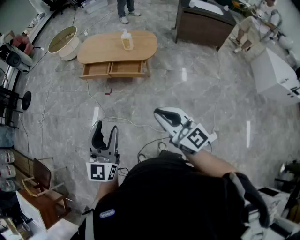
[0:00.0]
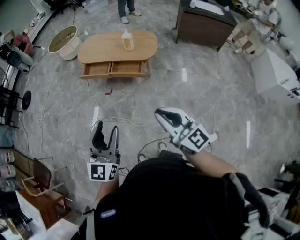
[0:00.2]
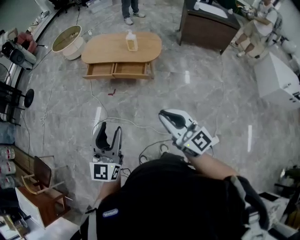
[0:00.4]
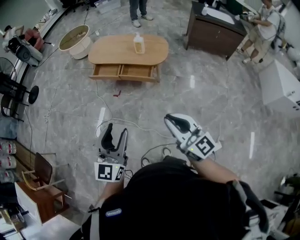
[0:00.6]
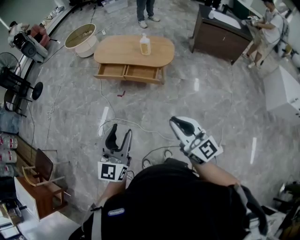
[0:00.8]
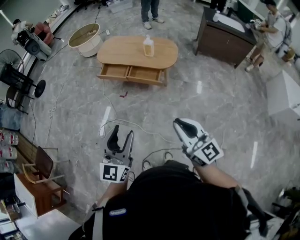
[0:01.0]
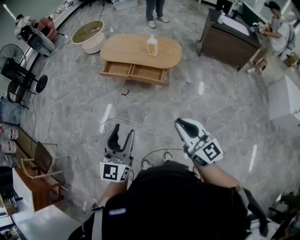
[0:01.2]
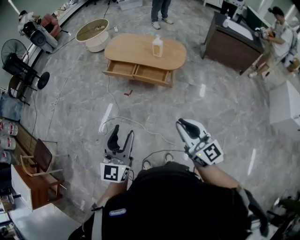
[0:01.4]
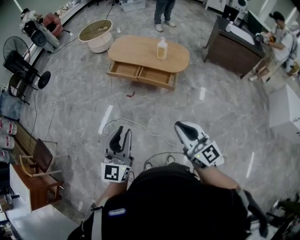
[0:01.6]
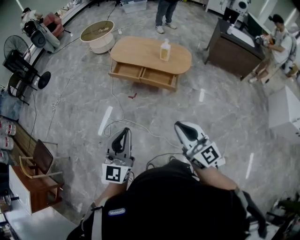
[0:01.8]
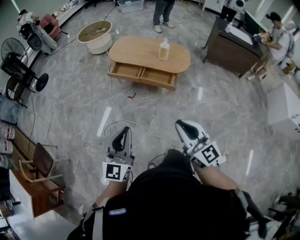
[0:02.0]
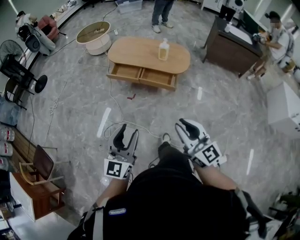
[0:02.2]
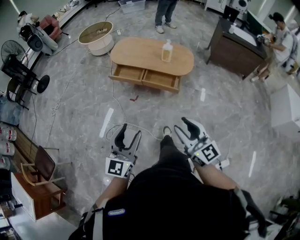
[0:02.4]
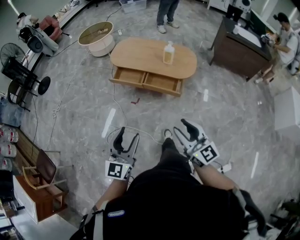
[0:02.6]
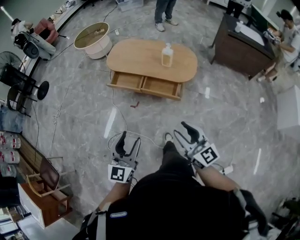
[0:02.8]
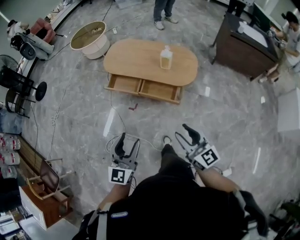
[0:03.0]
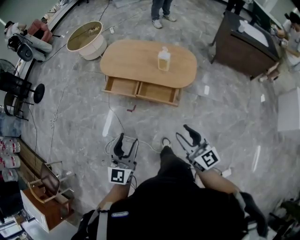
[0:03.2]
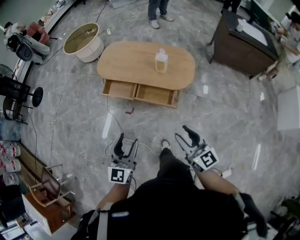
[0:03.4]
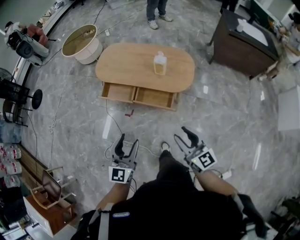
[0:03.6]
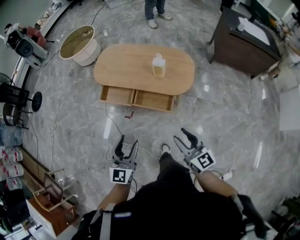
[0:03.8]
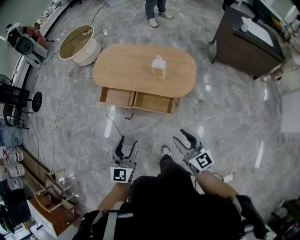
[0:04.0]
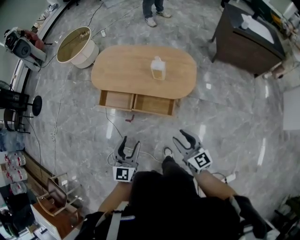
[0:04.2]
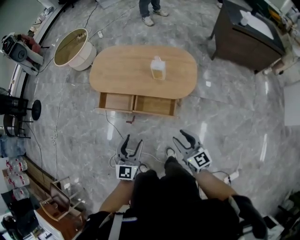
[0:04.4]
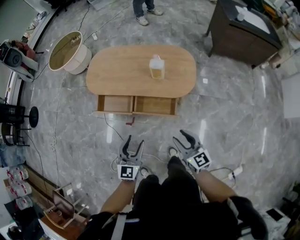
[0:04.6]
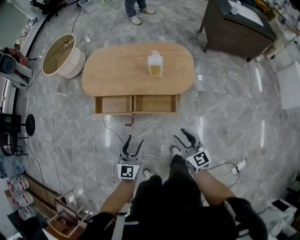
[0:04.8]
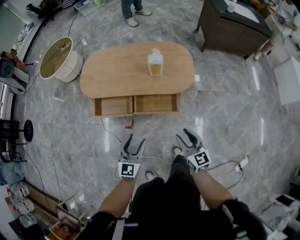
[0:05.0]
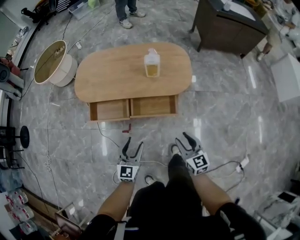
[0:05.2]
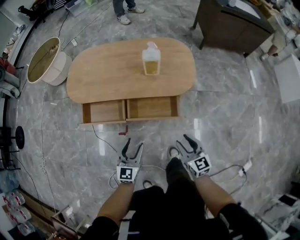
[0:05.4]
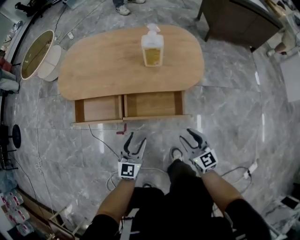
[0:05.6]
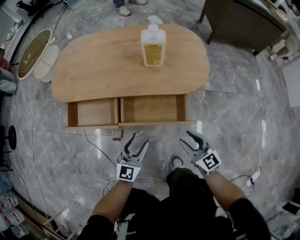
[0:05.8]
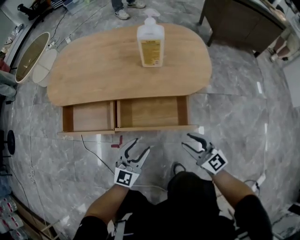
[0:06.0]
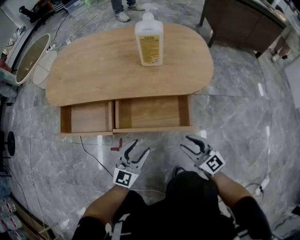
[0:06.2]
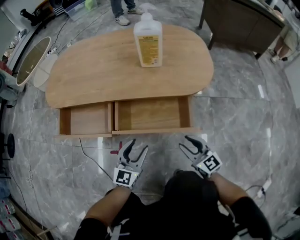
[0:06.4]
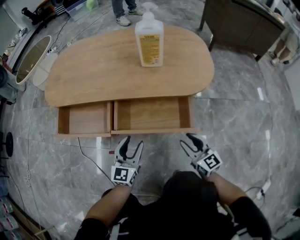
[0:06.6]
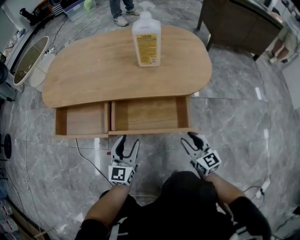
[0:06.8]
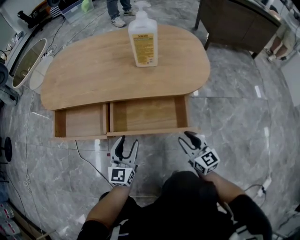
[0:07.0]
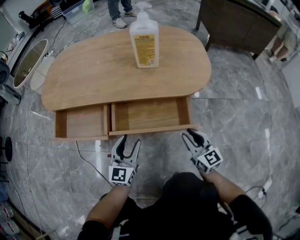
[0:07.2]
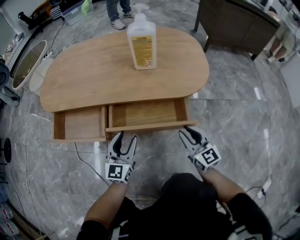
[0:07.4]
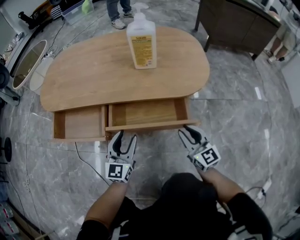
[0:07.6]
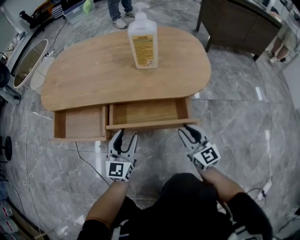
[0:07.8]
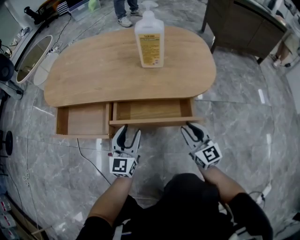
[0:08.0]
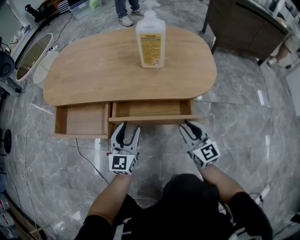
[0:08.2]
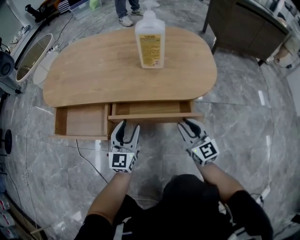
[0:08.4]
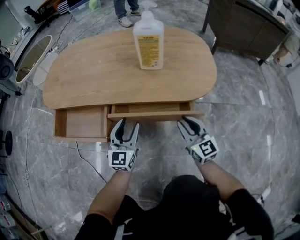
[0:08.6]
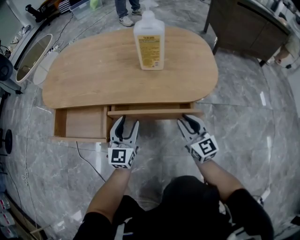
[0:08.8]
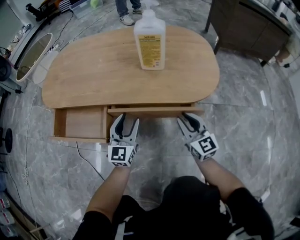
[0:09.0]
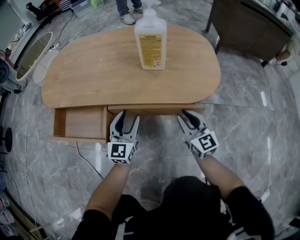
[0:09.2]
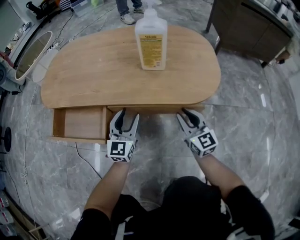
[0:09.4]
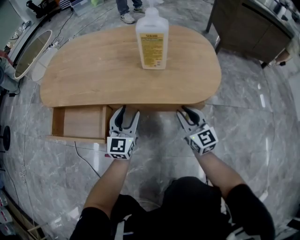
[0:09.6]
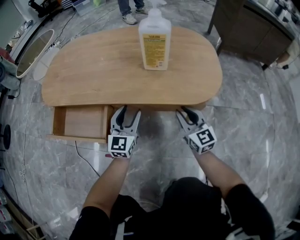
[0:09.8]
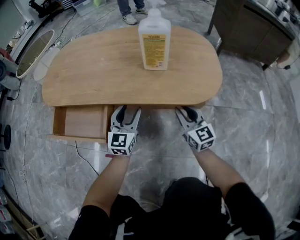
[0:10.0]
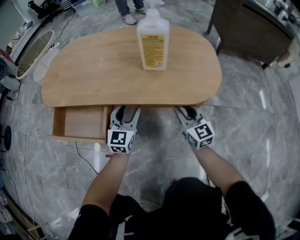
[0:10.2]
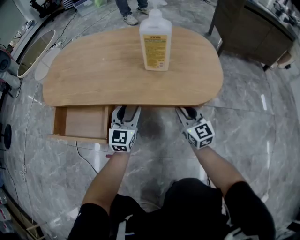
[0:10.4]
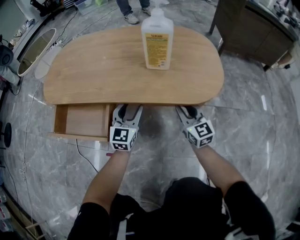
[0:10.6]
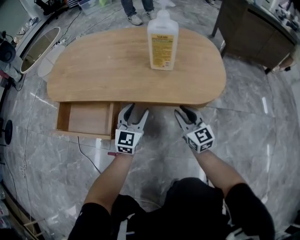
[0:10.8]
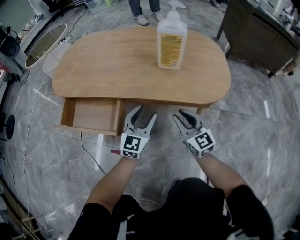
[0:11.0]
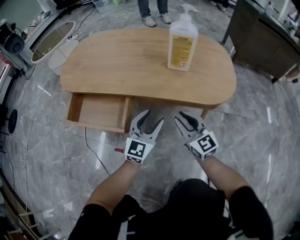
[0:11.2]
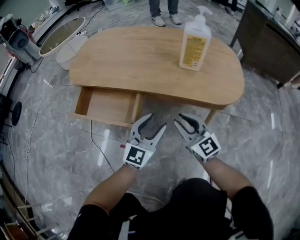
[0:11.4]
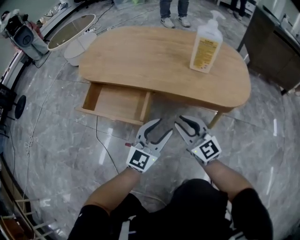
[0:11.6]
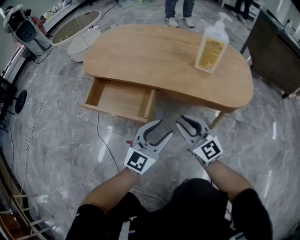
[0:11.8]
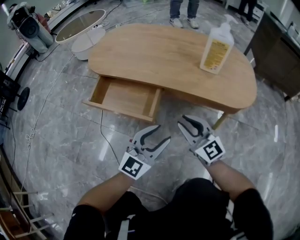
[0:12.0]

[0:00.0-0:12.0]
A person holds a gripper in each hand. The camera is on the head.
0:00.0 to 0:01.6: Both grippers travel together to the left, approximately 5 cm. The left gripper closes its fingers.
0:01.6 to 0:03.0: Both grippers move forward and downward, roughly 30 cm. The left gripper opens its fingers. Meanwhile the right gripper opens its fingers.
0:03.0 to 0:04.4: Both grippers move forward and downward, roughly 25 cm.
0:04.4 to 0:06.0: Both grippers move downward, roughly 40 cm. The left gripper rotates approximately 30 degrees.
0:06.0 to 0:07.6: The grippers both shift forward by about 10 cm. The left gripper changes its angle by some 20 degrees. Meanwhile the right gripper rotates about 20 degrees.
0:07.6 to 0:09.0: The two grippers go roughly 10 cm forward.
0:09.0 to 0:10.4: Both grippers travel together forward, roughly 5 cm.
0:10.4 to 0:12.0: The right gripper moves to the left and backward, about 25 cm, and turns by about 30 degrees. Meanwhile the left gripper is displaced backward by roughly 20 cm.

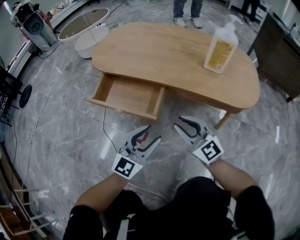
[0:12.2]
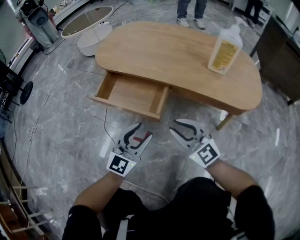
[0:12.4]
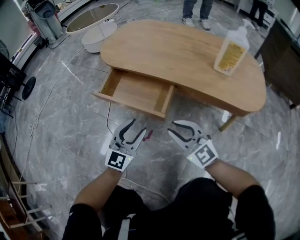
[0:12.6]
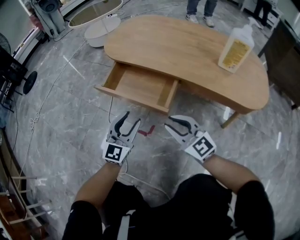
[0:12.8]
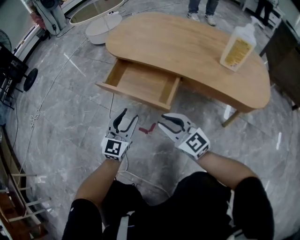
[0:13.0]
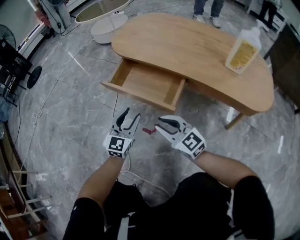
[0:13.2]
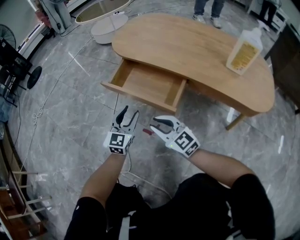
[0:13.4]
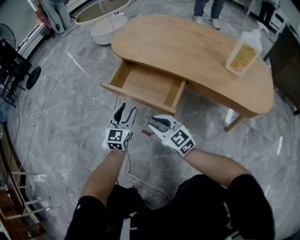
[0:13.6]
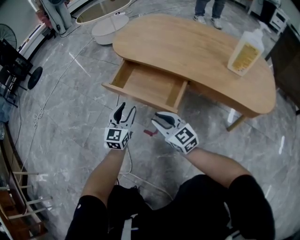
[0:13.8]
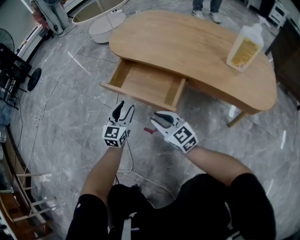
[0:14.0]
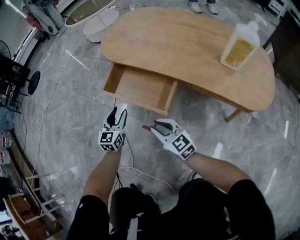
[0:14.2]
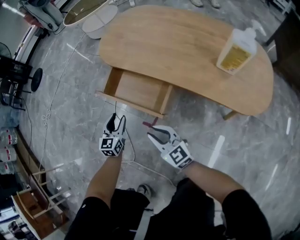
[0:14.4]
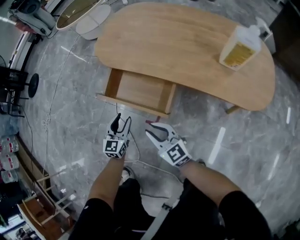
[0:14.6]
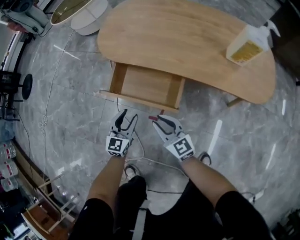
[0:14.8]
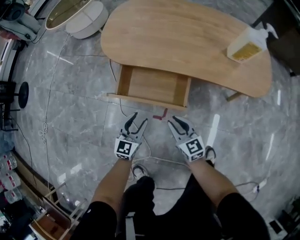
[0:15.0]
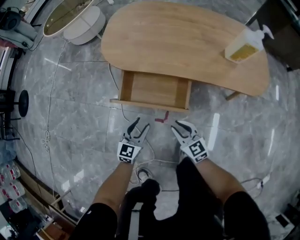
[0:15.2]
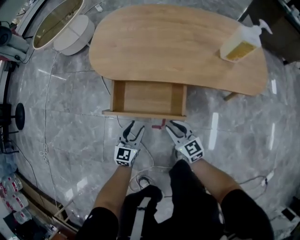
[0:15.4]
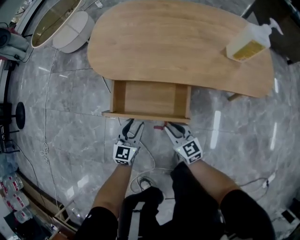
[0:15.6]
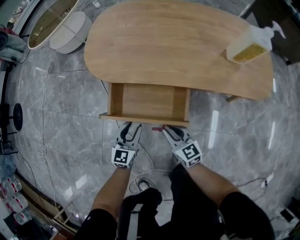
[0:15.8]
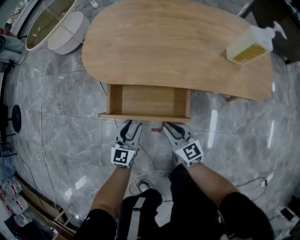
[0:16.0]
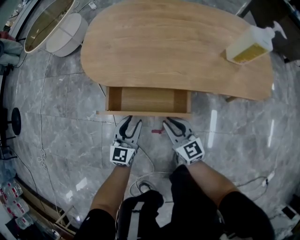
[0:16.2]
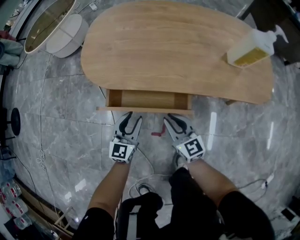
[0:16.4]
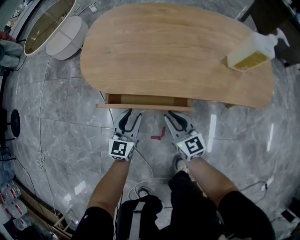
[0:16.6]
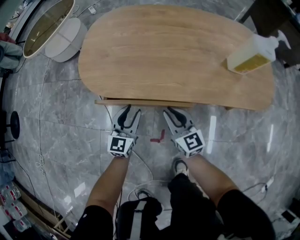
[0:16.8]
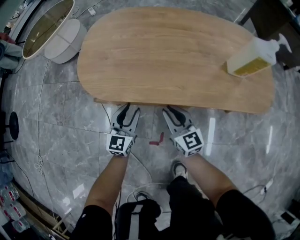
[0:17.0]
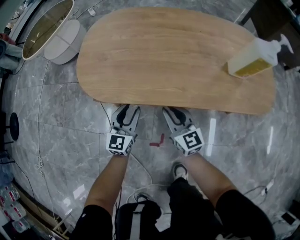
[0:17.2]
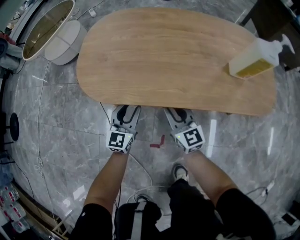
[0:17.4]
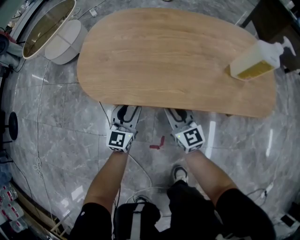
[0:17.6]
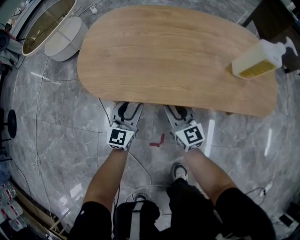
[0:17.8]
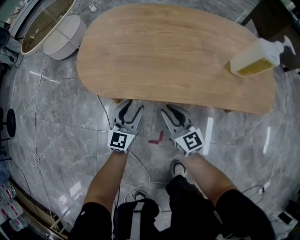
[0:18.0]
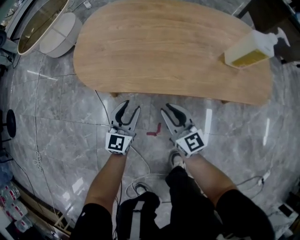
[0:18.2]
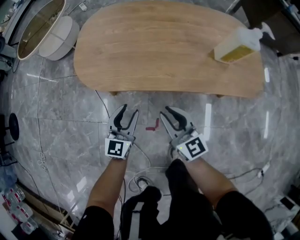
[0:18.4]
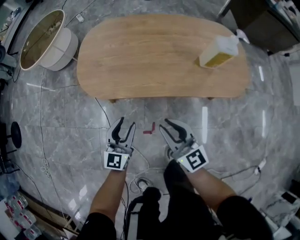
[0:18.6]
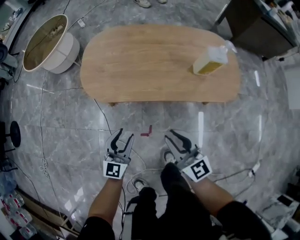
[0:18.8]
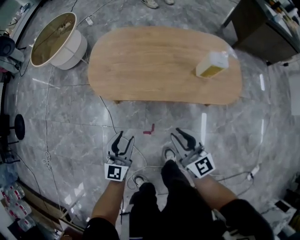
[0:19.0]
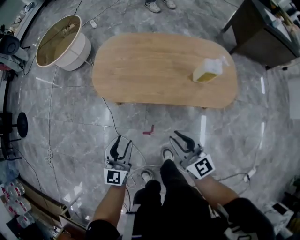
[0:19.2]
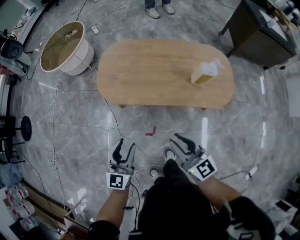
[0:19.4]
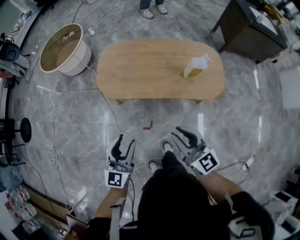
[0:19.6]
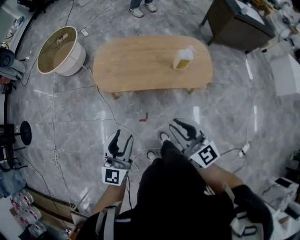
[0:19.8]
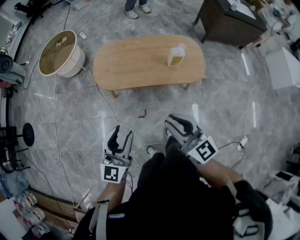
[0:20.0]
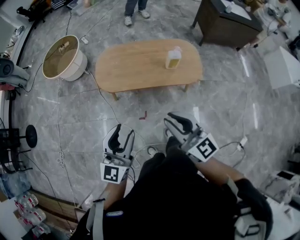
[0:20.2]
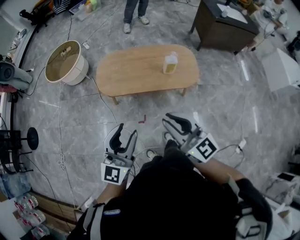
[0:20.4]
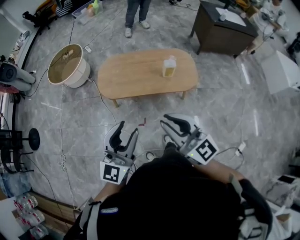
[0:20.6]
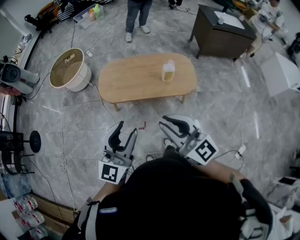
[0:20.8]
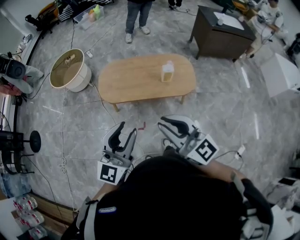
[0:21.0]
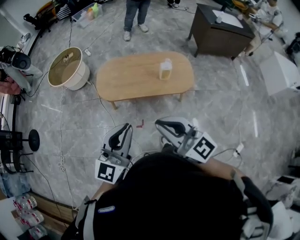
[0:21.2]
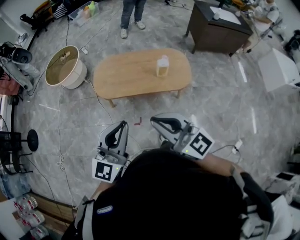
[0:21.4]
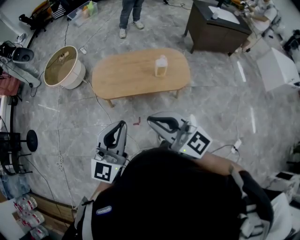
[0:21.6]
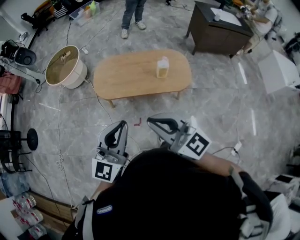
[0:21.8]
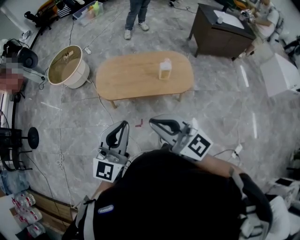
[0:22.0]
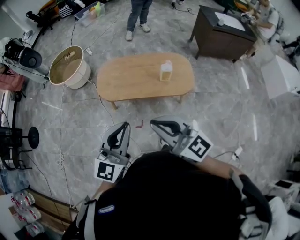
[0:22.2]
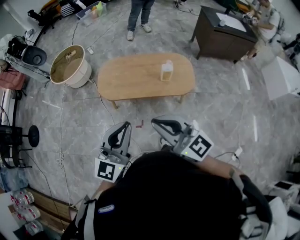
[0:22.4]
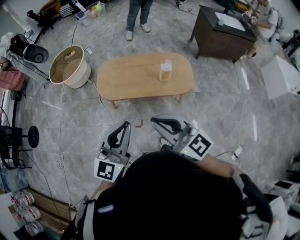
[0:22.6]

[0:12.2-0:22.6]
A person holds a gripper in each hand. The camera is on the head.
0:12.2 to 0:13.6: The right gripper moves to the left and downward, about 20 cm, and rotates about 20 degrees. The left gripper heads to the left, forward and downward, covering approximately 25 cm, and rotates roughly 40 degrees.
0:13.6 to 0:15.2: The left gripper changes place by approximately 5 cm, and rotates some 30 degrees; the right gripper changes its angle by roughly 30 degrees.
0:15.2 to 0:16.6: Both grippers travel together forward, about 15 cm.
0:16.6 to 0:18.2: The left gripper goes forward and returns, about 10 cm each way. The right gripper travels forward and back again, some 10 cm each way.
0:18.2 to 0:19.6: Both grippers move upward and backward, roughly 50 cm.
0:19.6 to 0:21.2: The left gripper moves upward, approximately 35 cm, and closes up; the right gripper travels upward and backward by about 35 cm.
0:21.2 to 0:22.6: Both grippers stay put.

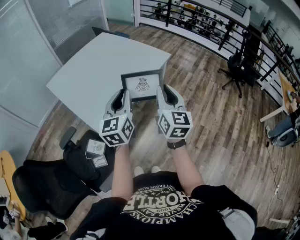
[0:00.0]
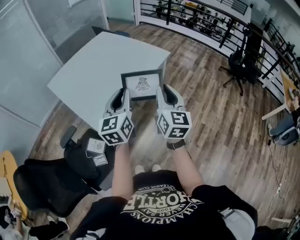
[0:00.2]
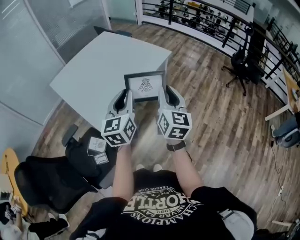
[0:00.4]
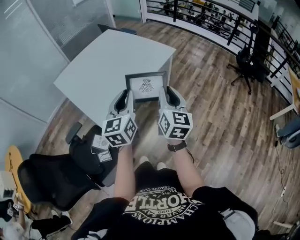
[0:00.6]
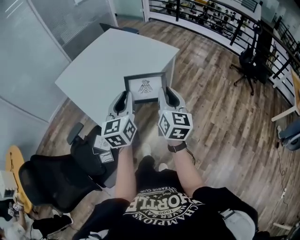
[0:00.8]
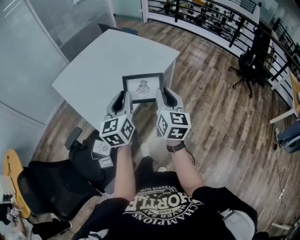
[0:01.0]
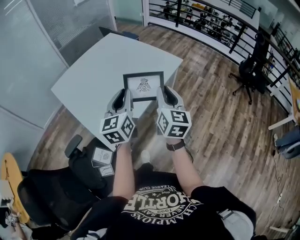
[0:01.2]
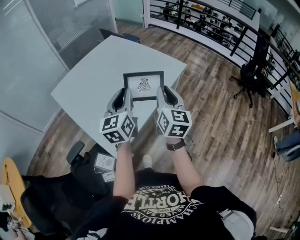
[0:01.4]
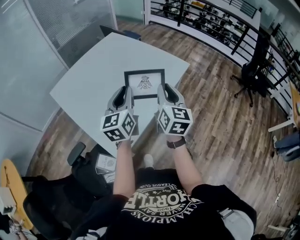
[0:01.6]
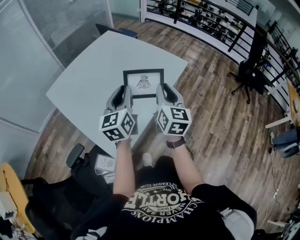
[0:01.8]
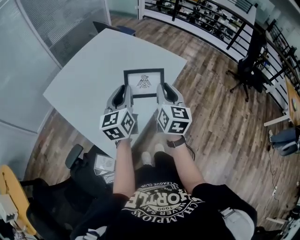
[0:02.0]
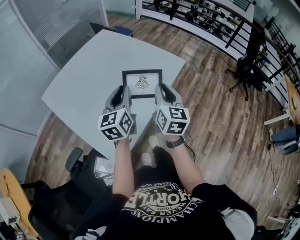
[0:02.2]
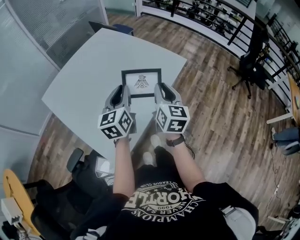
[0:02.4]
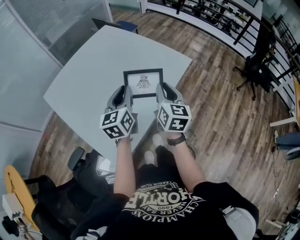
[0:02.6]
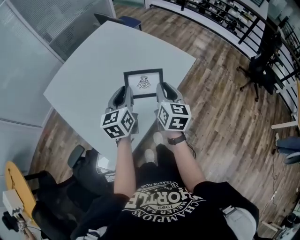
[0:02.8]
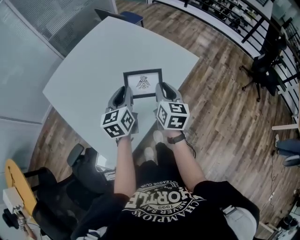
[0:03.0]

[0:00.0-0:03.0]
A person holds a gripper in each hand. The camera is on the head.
0:00.0 to 0:01.6: The grippers both shift forward and to the left by approximately 25 cm.
0:01.6 to 0:03.0: The two grippers go about 20 cm forward and downward.
